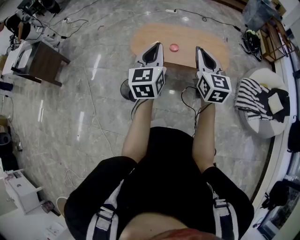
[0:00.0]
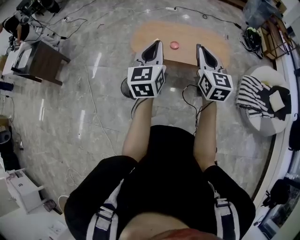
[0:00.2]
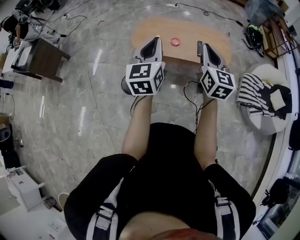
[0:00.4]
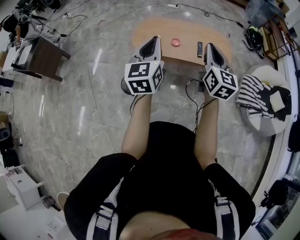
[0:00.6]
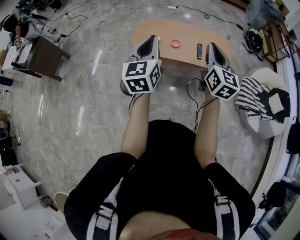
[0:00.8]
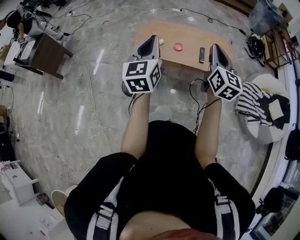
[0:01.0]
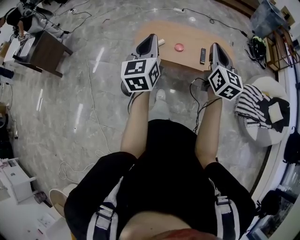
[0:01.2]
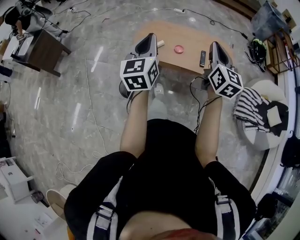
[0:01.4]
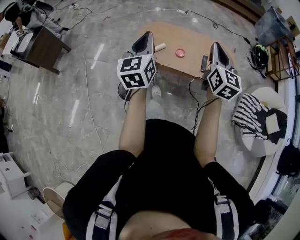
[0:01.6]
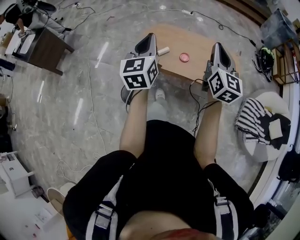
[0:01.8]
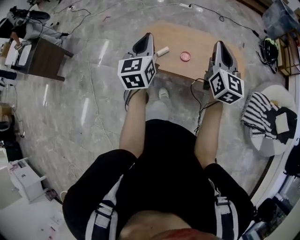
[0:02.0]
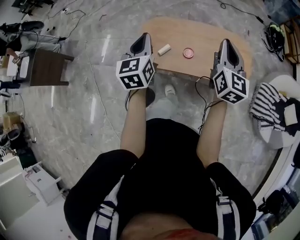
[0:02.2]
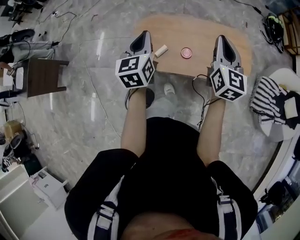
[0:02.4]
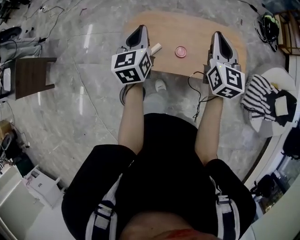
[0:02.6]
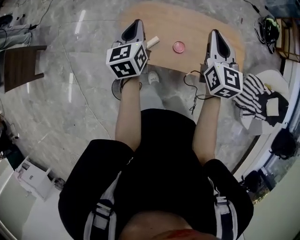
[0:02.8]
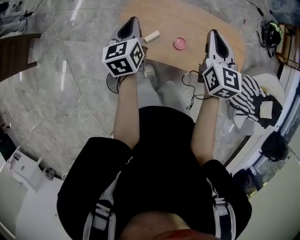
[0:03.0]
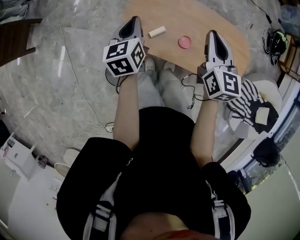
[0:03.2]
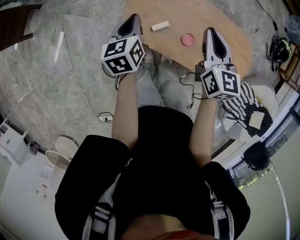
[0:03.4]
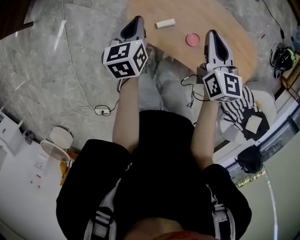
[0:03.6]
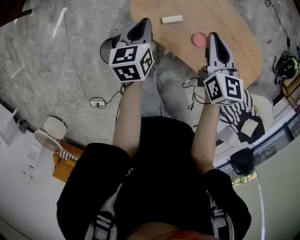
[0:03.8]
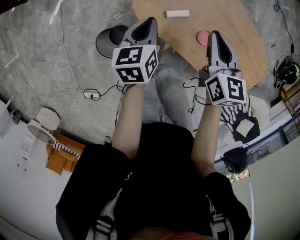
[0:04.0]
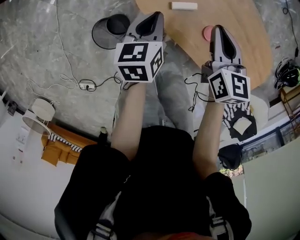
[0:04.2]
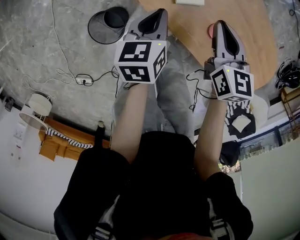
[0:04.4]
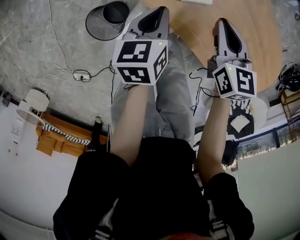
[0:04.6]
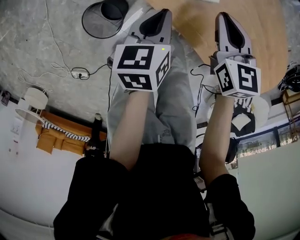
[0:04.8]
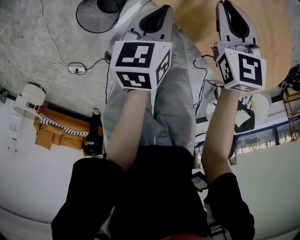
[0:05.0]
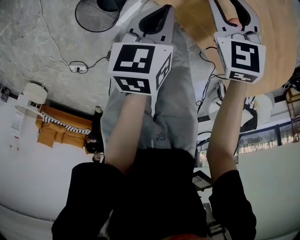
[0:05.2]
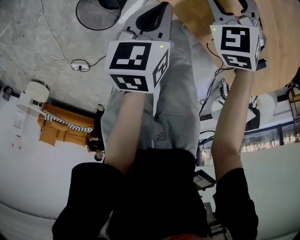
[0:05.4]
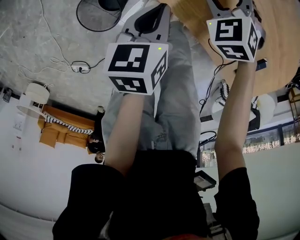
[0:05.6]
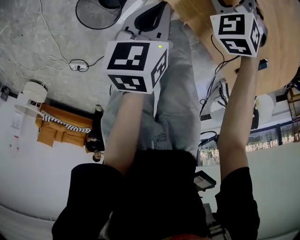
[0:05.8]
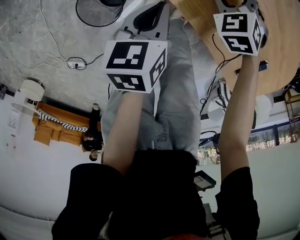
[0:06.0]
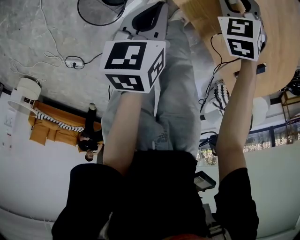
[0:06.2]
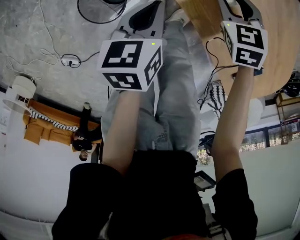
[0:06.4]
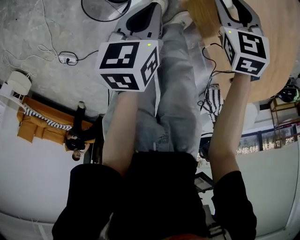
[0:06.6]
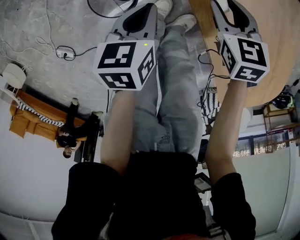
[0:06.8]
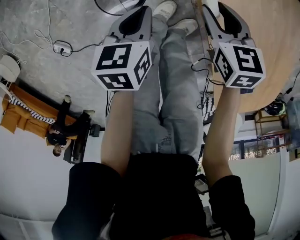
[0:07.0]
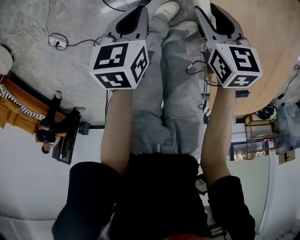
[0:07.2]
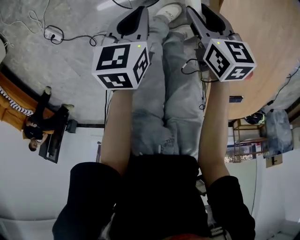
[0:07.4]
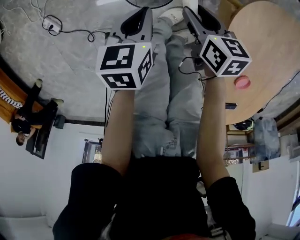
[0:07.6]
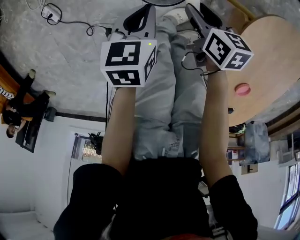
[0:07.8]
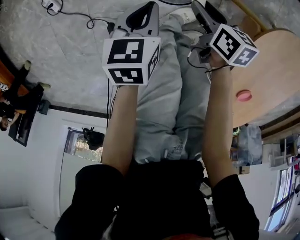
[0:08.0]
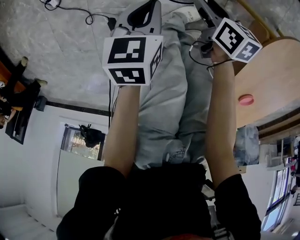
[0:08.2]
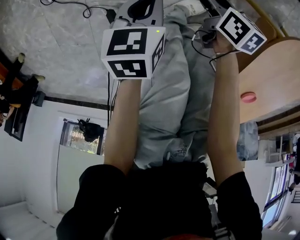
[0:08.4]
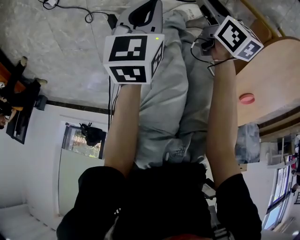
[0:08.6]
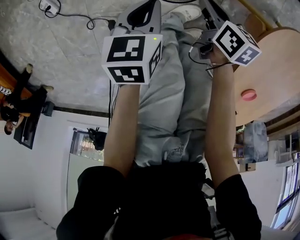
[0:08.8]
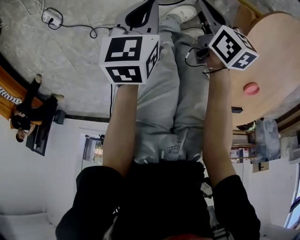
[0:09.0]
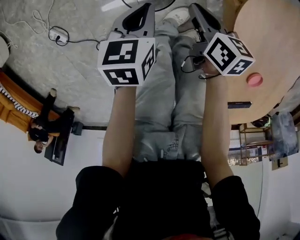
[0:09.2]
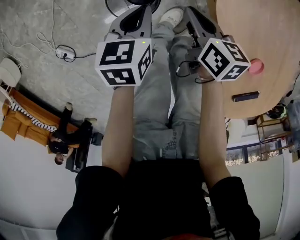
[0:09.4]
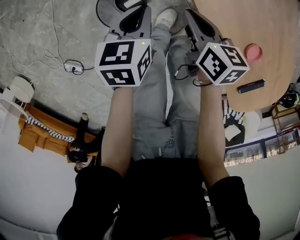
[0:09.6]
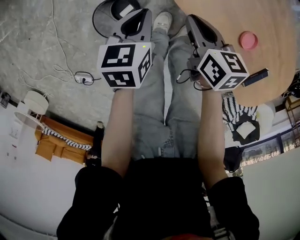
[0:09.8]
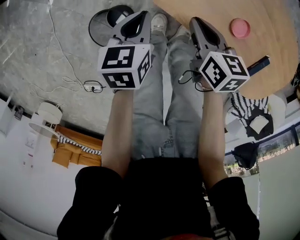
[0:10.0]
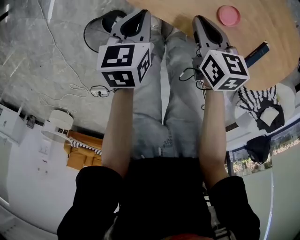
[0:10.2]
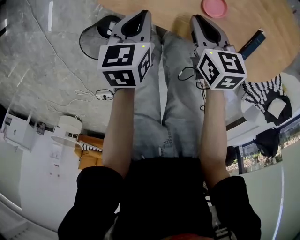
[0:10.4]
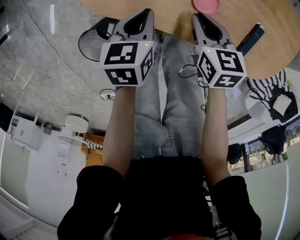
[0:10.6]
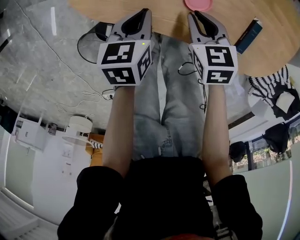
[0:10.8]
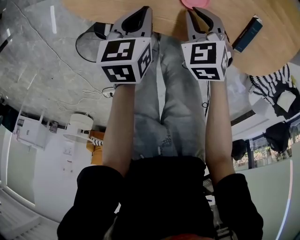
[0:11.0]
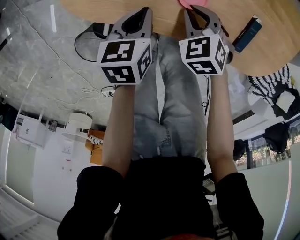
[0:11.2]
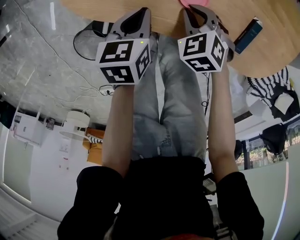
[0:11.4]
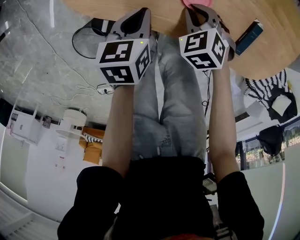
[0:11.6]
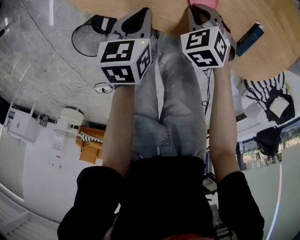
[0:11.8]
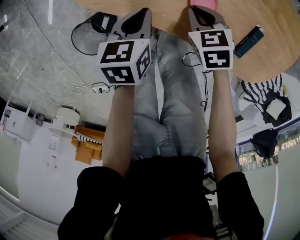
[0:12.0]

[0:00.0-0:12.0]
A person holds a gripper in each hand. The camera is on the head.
0:00.0 to 0:01.6: The right gripper shifts roughly 15 cm forward. The left gripper shifts roughly 10 cm forward and to the left.
0:01.6 to 0:03.0: Both grippers move forward and downward, approximately 40 cm. The right gripper turns by some 20 degrees; the left gripper rotates some 30 degrees.
0:03.0 to 0:04.4: The right gripper moves downward and to the left, about 30 cm, and changes its angle by some 40 degrees. The left gripper heads downward and backward, covering roughly 25 cm, and rotates approximately 30 degrees.
0:04.4 to 0:06.0: The left gripper is displaced downward by roughly 15 cm. The right gripper heads downward, covering some 25 cm, twists roughly 50 degrees counterclockwise, seen from behind, and opens.
0:06.0 to 0:07.6: The left gripper moves about 25 cm, and turns by about 40 degrees. Meanwhile the right gripper ends up some 30 cm from where it was, and changes its angle by about 50 degrees.
0:07.6 to 0:09.0: The right gripper closes its fingers, while the left gripper reaches approximately 10 cm to the left, then returns.
0:09.0 to 0:10.4: The left gripper ends up approximately 40 cm from where it was, and changes its angle by some 60 degrees, while the right gripper shifts by some 40 cm, and turns by some 50 degrees.
0:10.4 to 0:12.0: The right gripper goes roughly 5 cm downward, and swivels about 30 degrees. Meanwhile the left gripper goes approximately 5 cm to the right.

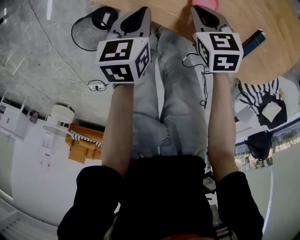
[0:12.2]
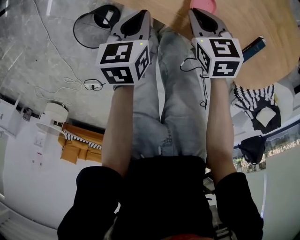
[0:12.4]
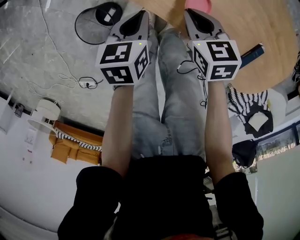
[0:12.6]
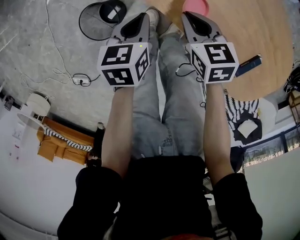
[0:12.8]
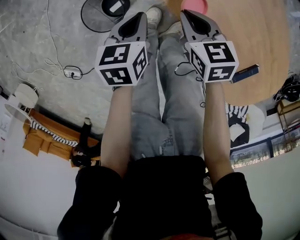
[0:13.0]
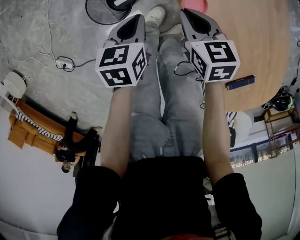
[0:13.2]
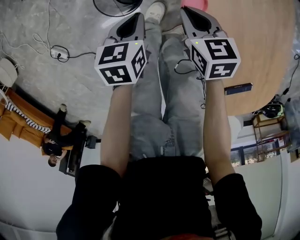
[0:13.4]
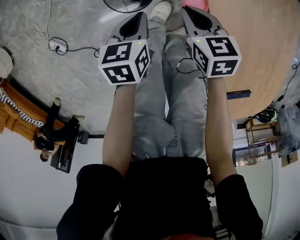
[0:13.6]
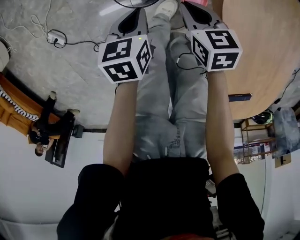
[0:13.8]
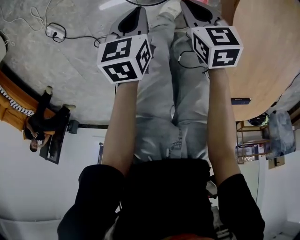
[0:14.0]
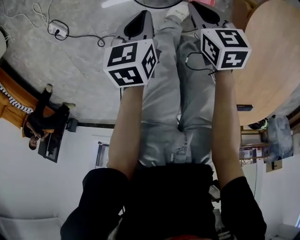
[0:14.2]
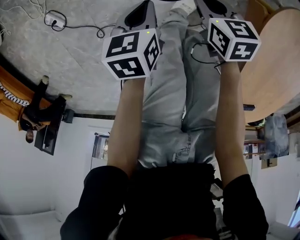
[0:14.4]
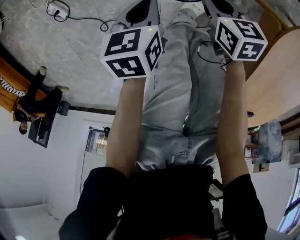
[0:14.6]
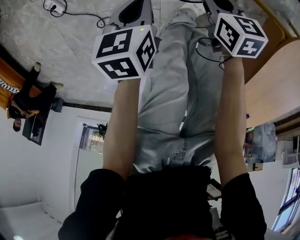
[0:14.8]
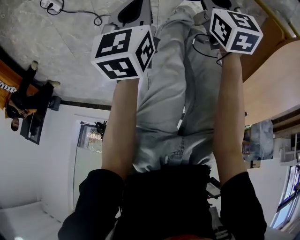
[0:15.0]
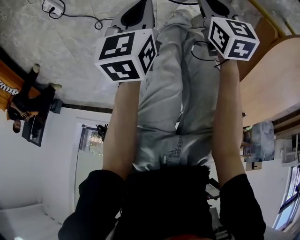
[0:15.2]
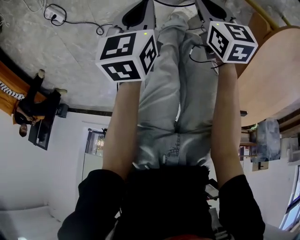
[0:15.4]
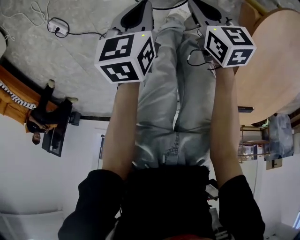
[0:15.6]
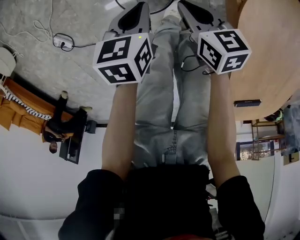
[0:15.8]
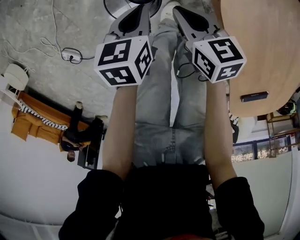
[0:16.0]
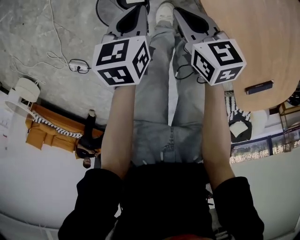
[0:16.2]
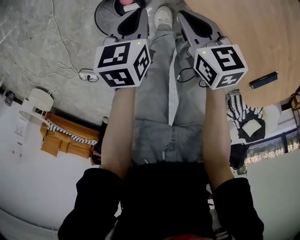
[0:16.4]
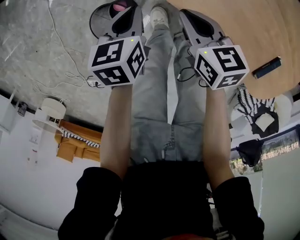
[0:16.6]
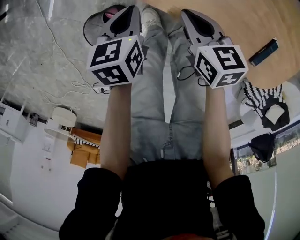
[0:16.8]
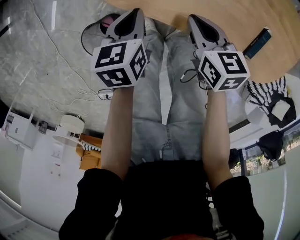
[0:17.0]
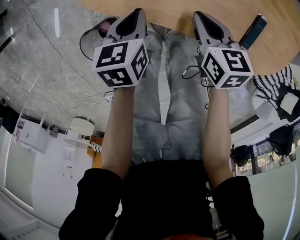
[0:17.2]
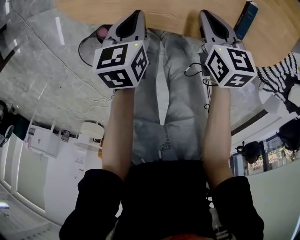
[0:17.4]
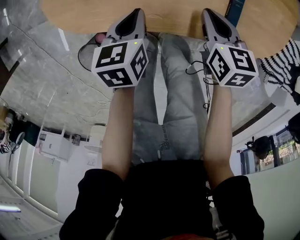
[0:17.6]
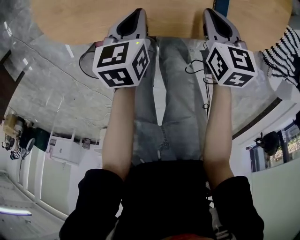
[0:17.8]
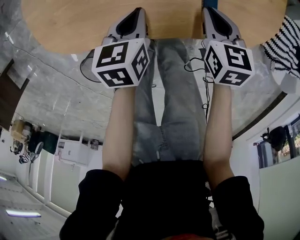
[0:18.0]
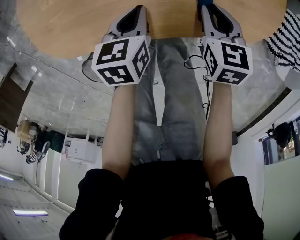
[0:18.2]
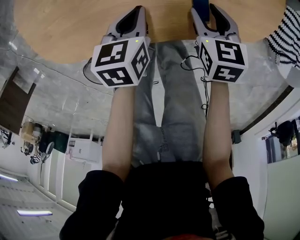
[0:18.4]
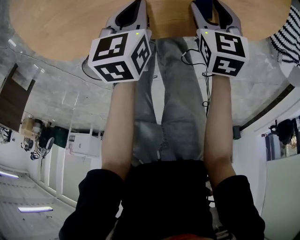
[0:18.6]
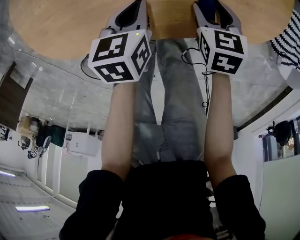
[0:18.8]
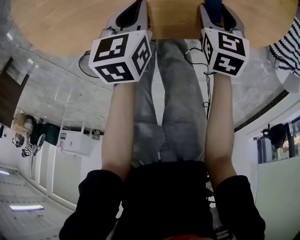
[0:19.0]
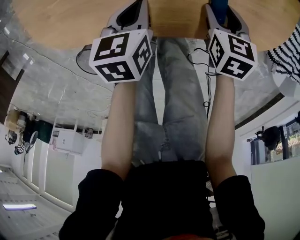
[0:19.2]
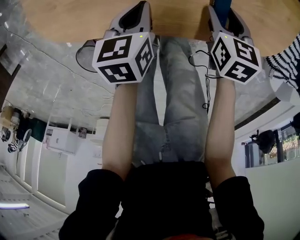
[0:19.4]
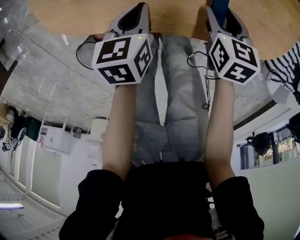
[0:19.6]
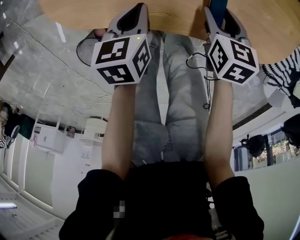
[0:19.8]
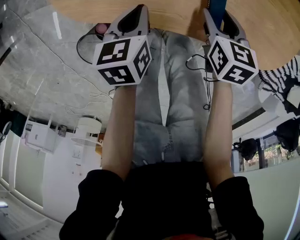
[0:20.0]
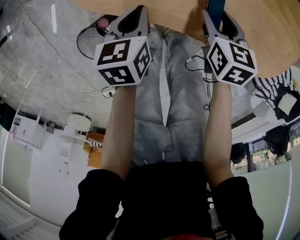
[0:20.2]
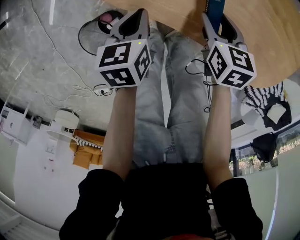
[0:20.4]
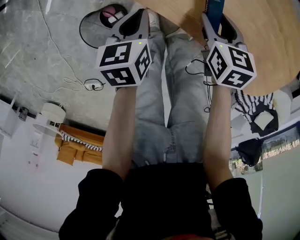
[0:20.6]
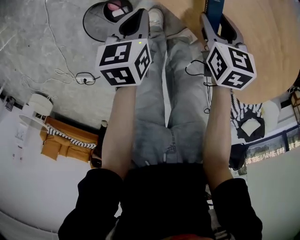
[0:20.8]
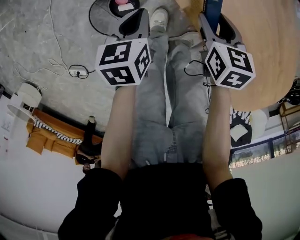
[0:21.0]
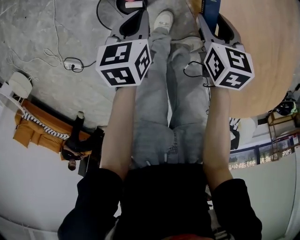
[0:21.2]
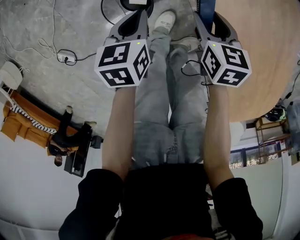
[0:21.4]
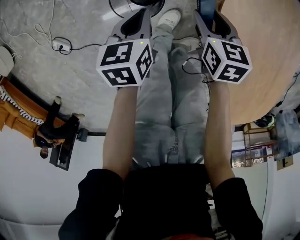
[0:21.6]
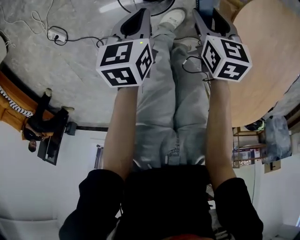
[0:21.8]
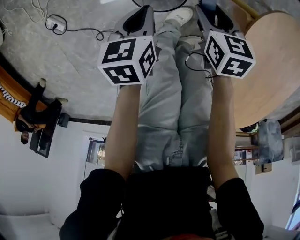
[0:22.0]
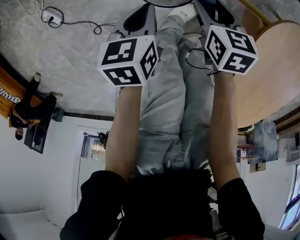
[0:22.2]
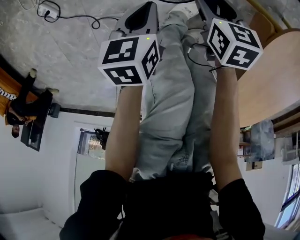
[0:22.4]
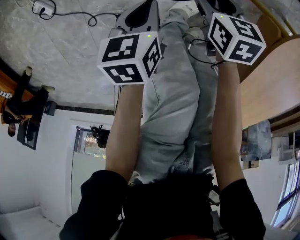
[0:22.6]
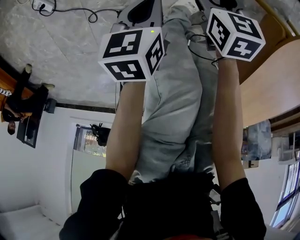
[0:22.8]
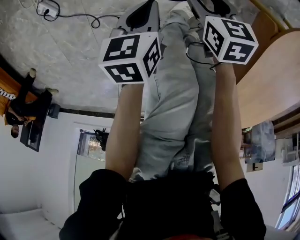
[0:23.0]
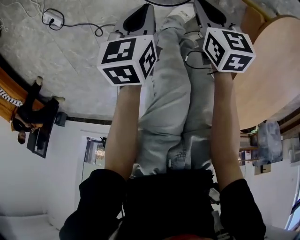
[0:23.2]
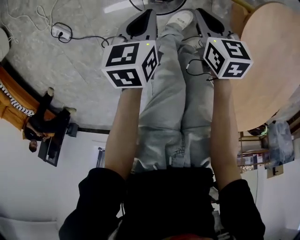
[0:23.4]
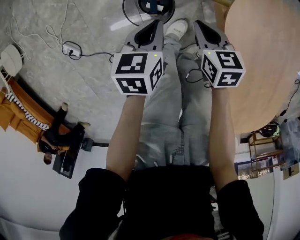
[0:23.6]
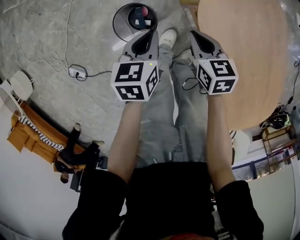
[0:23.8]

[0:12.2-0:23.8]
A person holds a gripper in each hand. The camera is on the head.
0:12.2 to 0:13.6: The right gripper changes place by some 30 cm, and rotates about 40 degrees. The left gripper changes place by approximately 30 cm, and changes its angle by roughly 50 degrees.
0:13.6 to 0:15.0: The right gripper moves downward, to the left and forward, roughly 20 cm. The left gripper shifts approximately 15 cm to the left and downward, and swivels some 20 degrees.
0:15.0 to 0:16.6: The right gripper changes place by approximately 30 cm, and rotates approximately 50 degrees; the left gripper moves roughly 30 cm, and rotates around the line of its fingers by roughly 50 degrees, clockwise from behind.
0:16.6 to 0:18.0: Both grippers are carried roughly 40 cm. The left gripper turns by some 40 degrees. Meanwhile the right gripper changes its angle by roughly 50 degrees.
0:18.0 to 0:19.4: The right gripper opens its fingers.
0:19.4 to 0:21.0: The left gripper changes place by approximately 40 cm, and rotates approximately 50 degrees. The right gripper shifts by approximately 40 cm, and changes its angle by about 50 degrees.
0:21.0 to 0:22.4: The left gripper changes place by roughly 30 cm, and swivels some 40 degrees. Meanwhile the right gripper changes place by some 35 cm, and rotates some 40 degrees.
0:22.4 to 0:23.8: The left gripper ends up about 25 cm from where it was, and rotates approximately 30 degrees. Meanwhile the right gripper shifts approximately 20 cm upward, turns by approximately 20 degrees, and closes.
